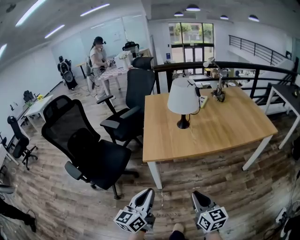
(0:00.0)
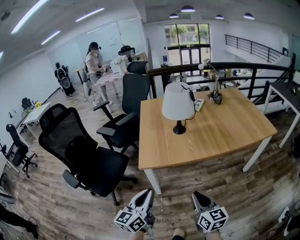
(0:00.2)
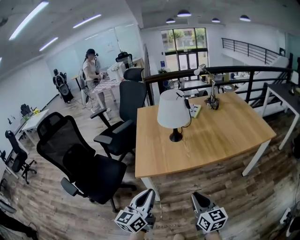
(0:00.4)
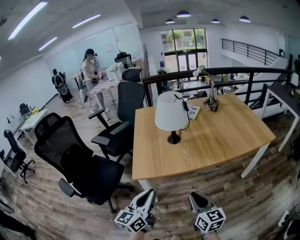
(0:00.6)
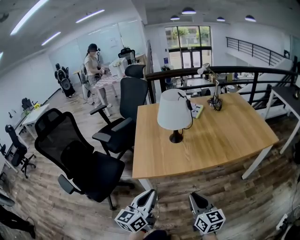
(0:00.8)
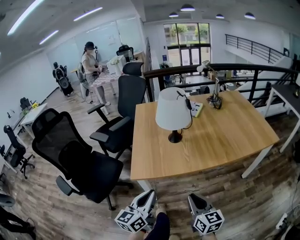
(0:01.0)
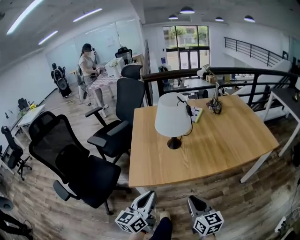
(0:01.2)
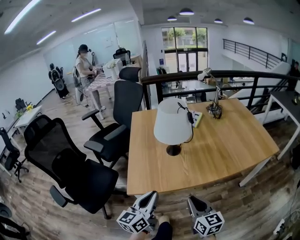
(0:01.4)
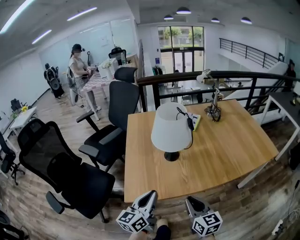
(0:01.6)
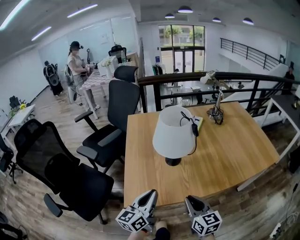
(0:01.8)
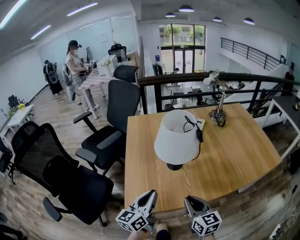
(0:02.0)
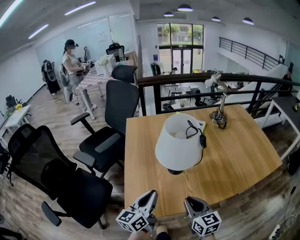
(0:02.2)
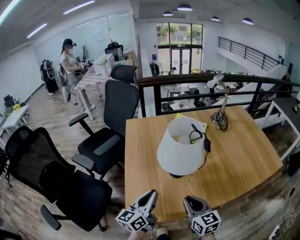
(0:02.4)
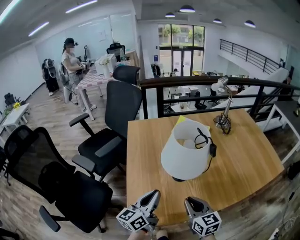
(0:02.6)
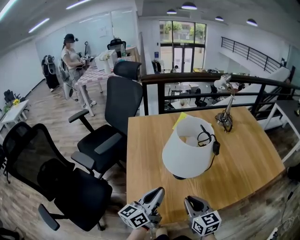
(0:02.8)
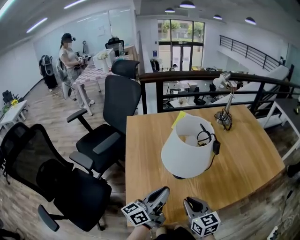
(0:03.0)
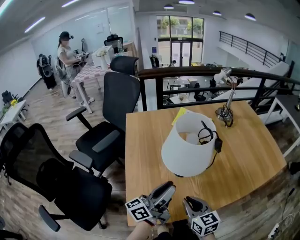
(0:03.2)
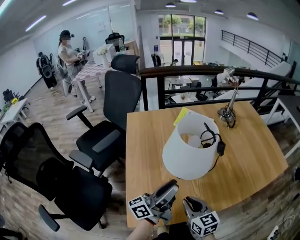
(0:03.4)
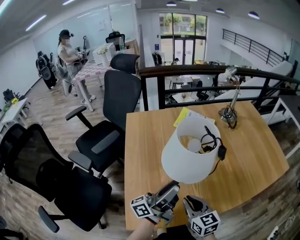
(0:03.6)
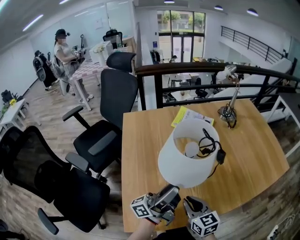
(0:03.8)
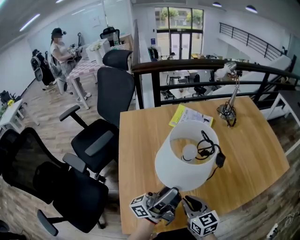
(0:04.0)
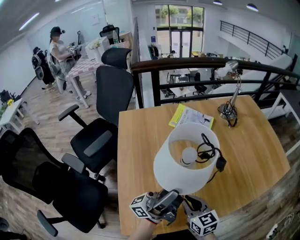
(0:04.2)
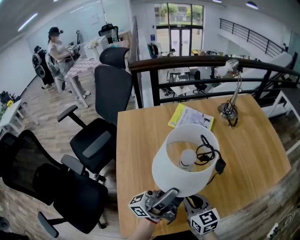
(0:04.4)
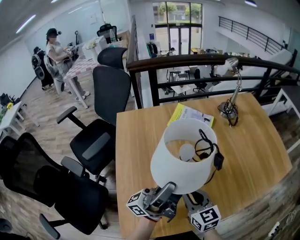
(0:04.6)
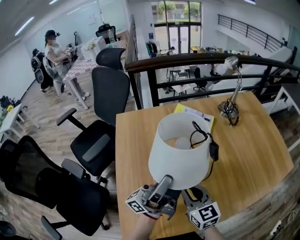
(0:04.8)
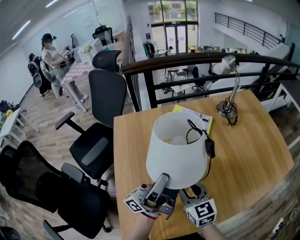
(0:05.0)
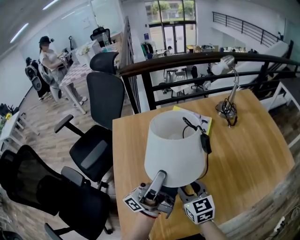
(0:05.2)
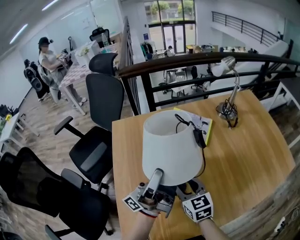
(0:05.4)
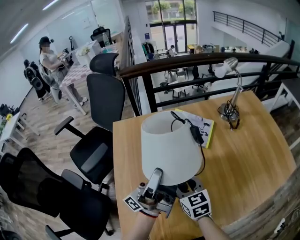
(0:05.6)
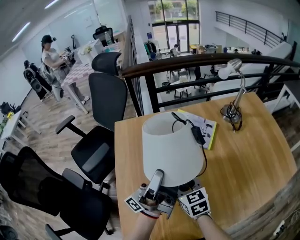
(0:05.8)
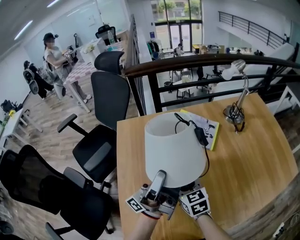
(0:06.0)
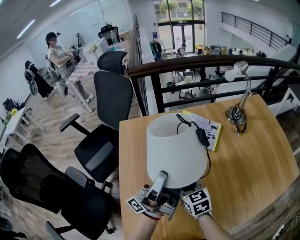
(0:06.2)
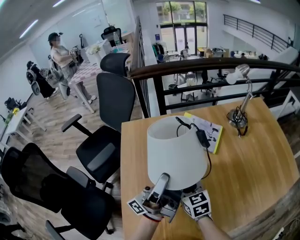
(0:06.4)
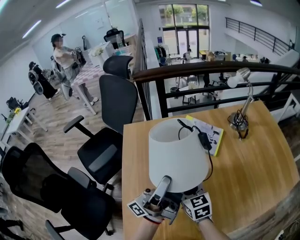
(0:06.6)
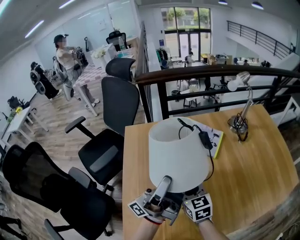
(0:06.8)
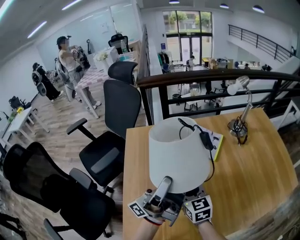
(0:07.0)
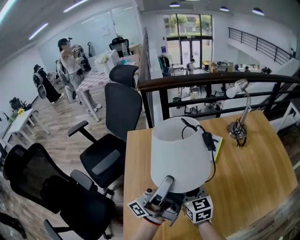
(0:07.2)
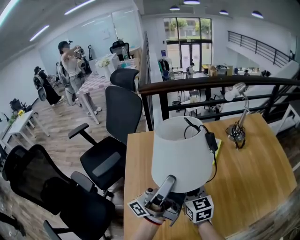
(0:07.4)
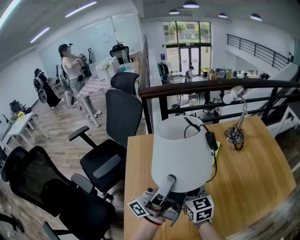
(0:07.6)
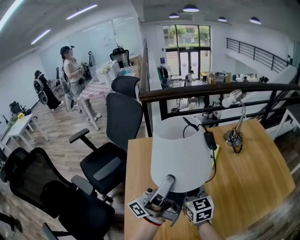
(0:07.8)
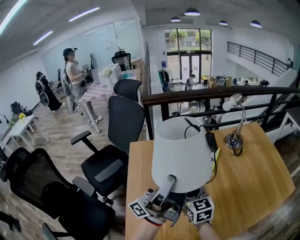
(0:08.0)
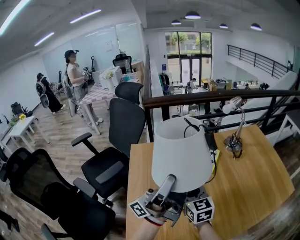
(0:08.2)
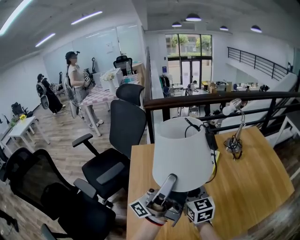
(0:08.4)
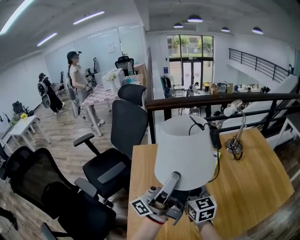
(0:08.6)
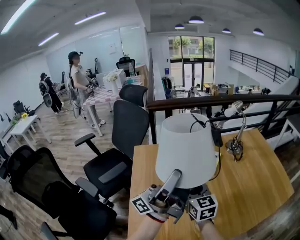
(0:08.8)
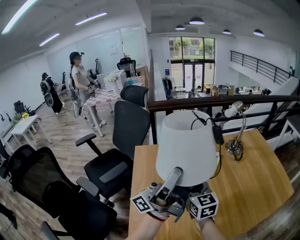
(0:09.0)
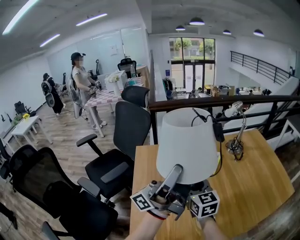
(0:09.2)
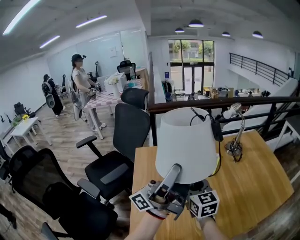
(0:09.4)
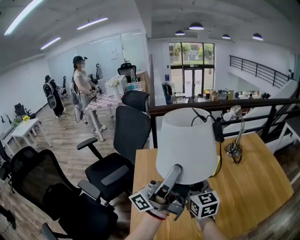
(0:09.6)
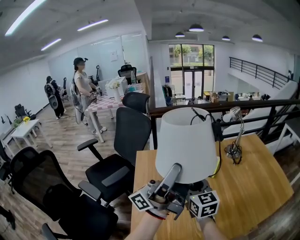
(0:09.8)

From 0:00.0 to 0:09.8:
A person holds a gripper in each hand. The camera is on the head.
From 0:00.0 to 0:01.4: Both grippers move forward, roughly 20 cm.
From 0:01.4 to 0:02.8: The grippers both shift forward by about 20 cm.
From 0:02.8 to 0:04.2: The right gripper heads forward, covering some 5 cm; the left gripper is displaced upward, forward and to the right by roughly 10 cm, tilts its fingers roughly 40 degrees upward, and opens up.
From 0:04.2 to 0:05.6: The two grippers go roughly 15 cm forward. The left gripper closes; the right gripper opens.
From 0:05.6 to 0:07.0: There are only small adjustments of the grippers.
From 0:07.0 to 0:08.4: Both grippers travel together upward, roughly 10 cm.
From 0:08.4 to 0:09.8: Both grippers travel together upward, about 5 cm.

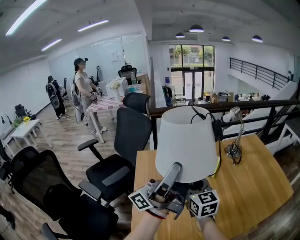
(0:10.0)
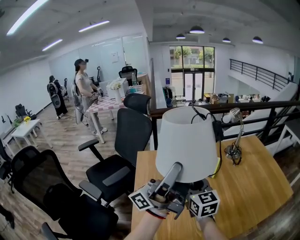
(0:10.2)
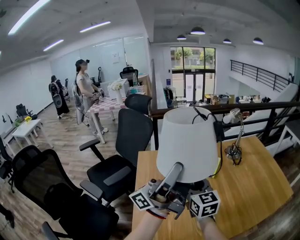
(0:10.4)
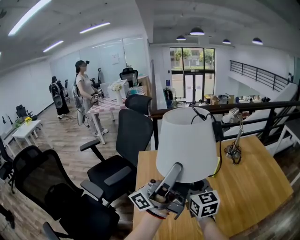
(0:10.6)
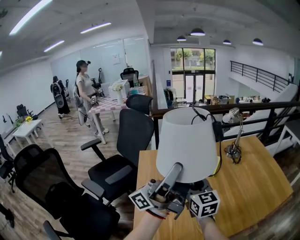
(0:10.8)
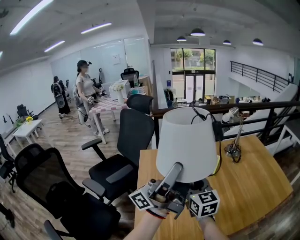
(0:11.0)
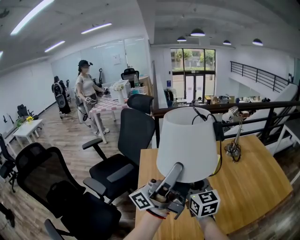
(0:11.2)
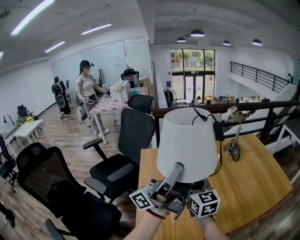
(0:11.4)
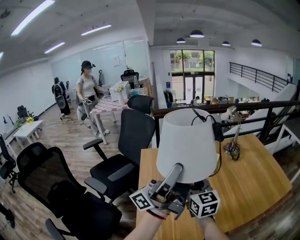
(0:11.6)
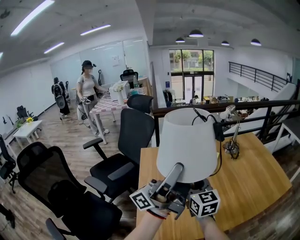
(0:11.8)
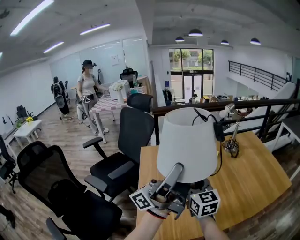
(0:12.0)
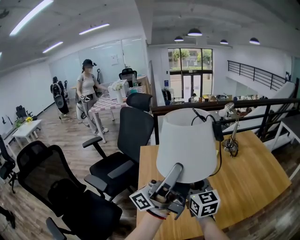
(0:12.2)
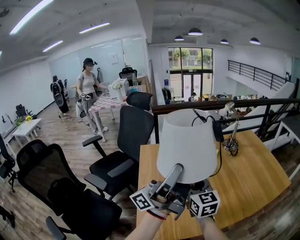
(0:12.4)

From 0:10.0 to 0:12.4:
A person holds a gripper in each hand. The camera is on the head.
From 0:10.0 to 0:11.2: Both grippers travel together backward, approximately 5 cm.
From 0:11.2 to 0:12.4: The grippers make only small movements.

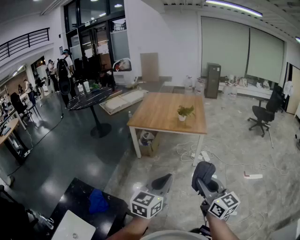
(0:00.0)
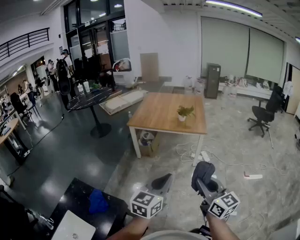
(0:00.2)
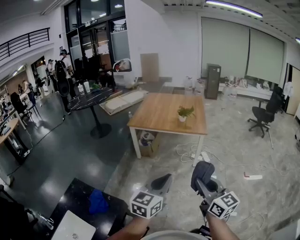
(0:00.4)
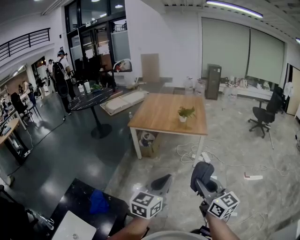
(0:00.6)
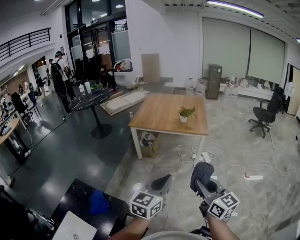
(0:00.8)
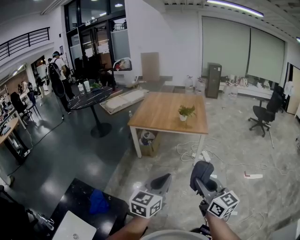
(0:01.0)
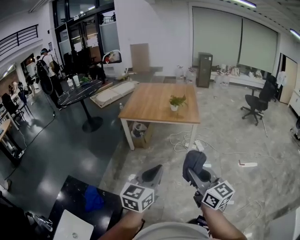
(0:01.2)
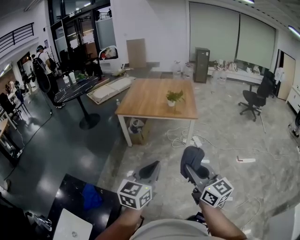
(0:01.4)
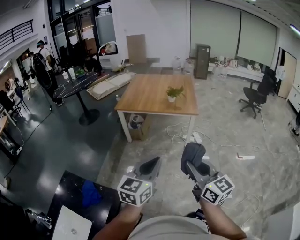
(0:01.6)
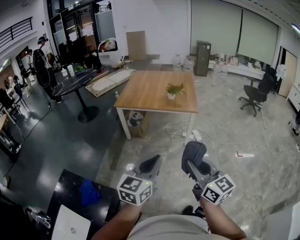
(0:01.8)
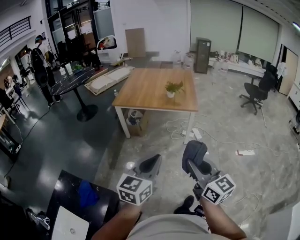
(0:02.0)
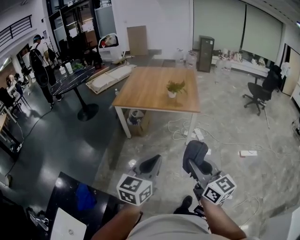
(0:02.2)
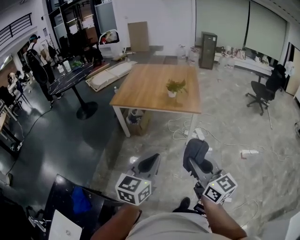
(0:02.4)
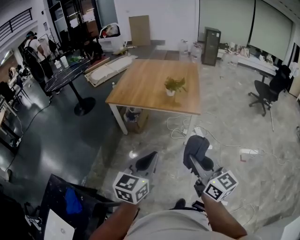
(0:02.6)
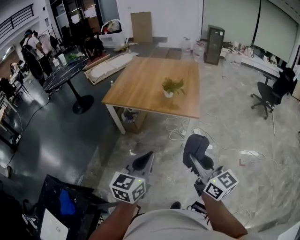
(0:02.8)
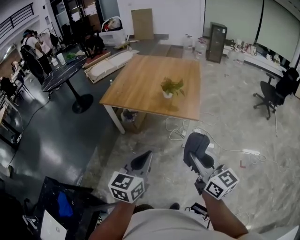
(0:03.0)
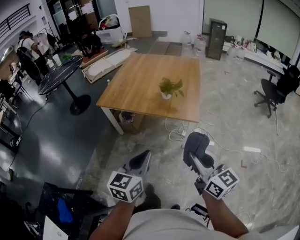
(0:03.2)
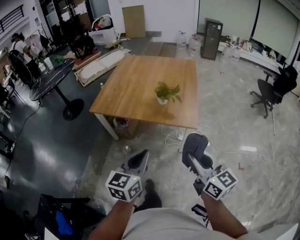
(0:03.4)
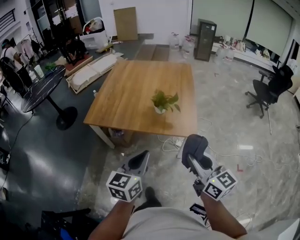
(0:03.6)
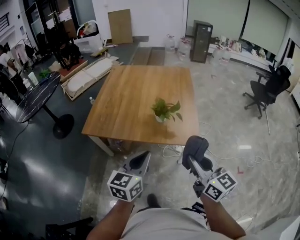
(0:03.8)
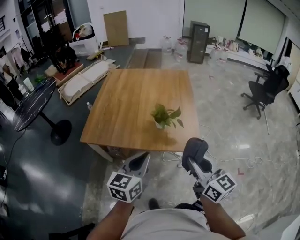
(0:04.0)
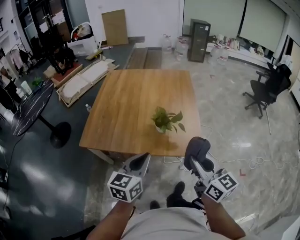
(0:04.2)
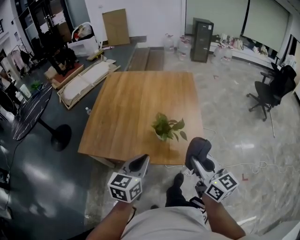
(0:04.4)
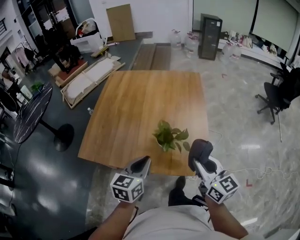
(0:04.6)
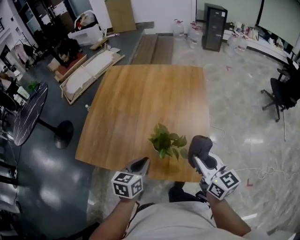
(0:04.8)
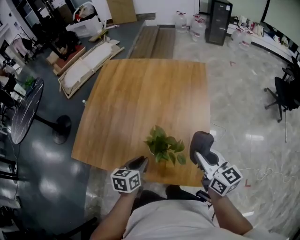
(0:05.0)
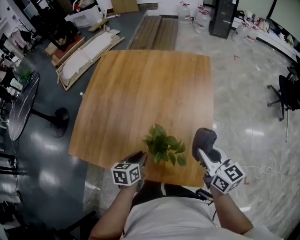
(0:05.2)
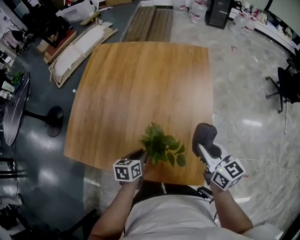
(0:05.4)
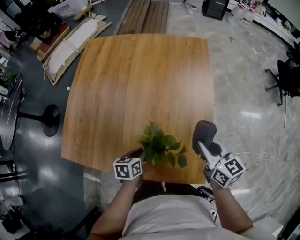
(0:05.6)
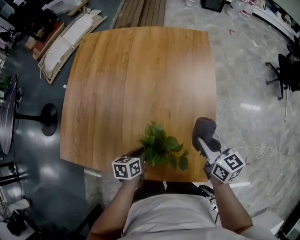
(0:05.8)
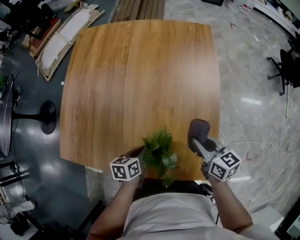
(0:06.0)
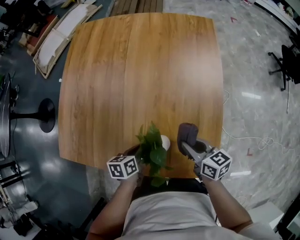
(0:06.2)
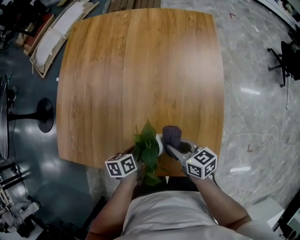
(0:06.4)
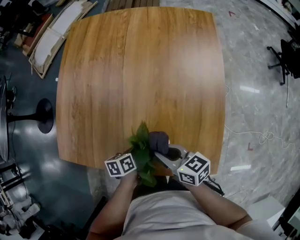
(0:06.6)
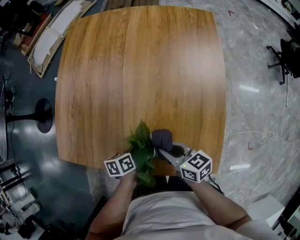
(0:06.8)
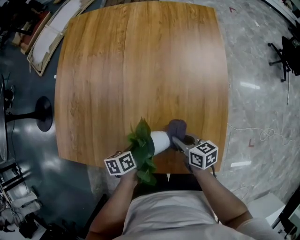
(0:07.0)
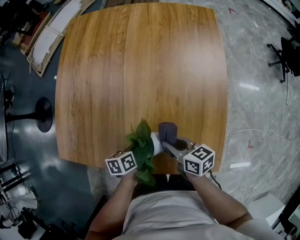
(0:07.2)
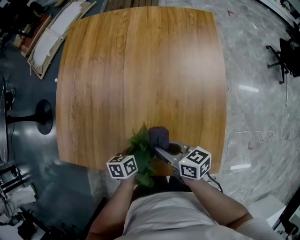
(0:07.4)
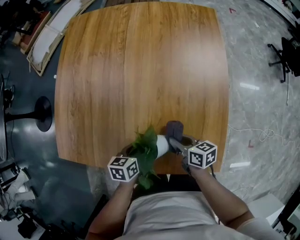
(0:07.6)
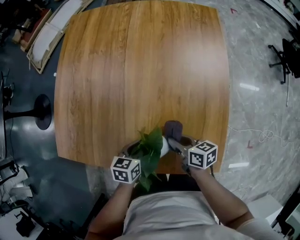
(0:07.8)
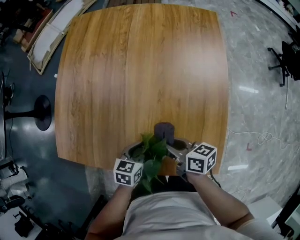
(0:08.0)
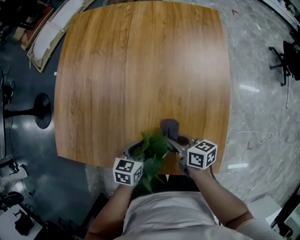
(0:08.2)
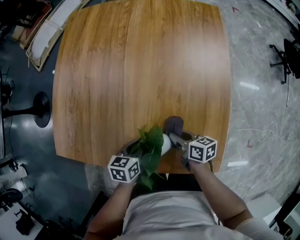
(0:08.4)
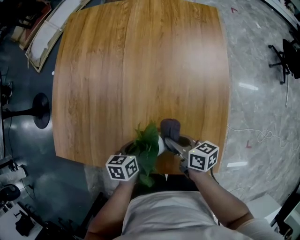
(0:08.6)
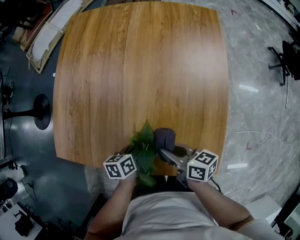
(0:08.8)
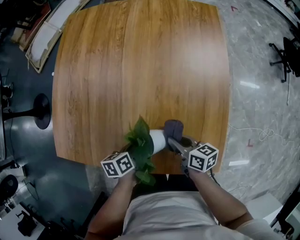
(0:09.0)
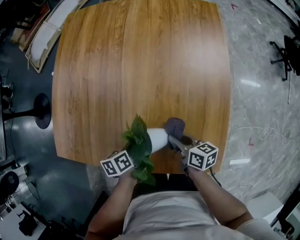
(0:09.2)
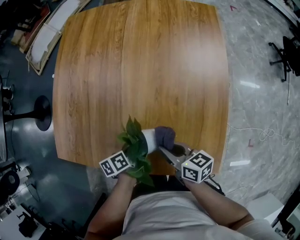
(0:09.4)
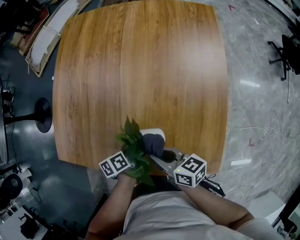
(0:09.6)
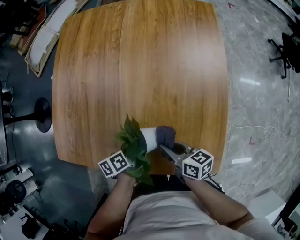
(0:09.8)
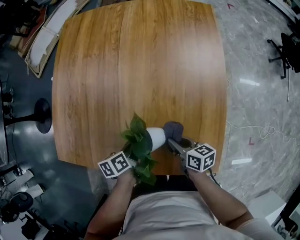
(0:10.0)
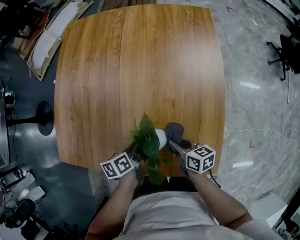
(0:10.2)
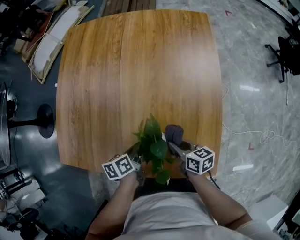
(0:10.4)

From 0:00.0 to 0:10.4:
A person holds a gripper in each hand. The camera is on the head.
From 0:00.0 to 0:01.4: The grippers make only small movements.
From 0:01.4 to 0:03.0: The two grippers travel together, forward and to the right, about 40 cm.
From 0:03.0 to 0:04.4: Both grippers are carried forward, some 50 cm.
From 0:04.4 to 0:06.0: The right gripper heads forward and downward, covering approximately 50 cm, and rotates approximately 30 degrees. The left gripper moves downward and forward, approximately 50 cm, and tips its fingers downward by approximately 30 degrees.
From 0:06.0 to 0:07.4: The right gripper moves left and right over approximately 20 cm, changing direction 2 times, and swivels approximately 20 degrees. The left gripper shifts by approximately 5 cm.
From 0:07.4 to 0:09.0: The right gripper moves up and down over some 10 cm, changing direction 4 times.
From 0:09.0 to 0:10.4: The right gripper reaches about 10 cm to the left, then returns.

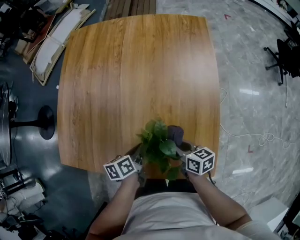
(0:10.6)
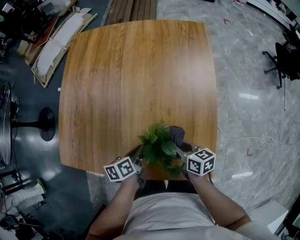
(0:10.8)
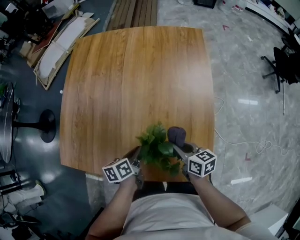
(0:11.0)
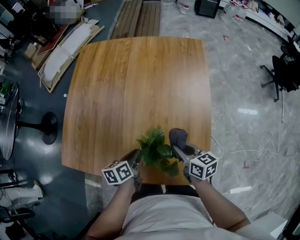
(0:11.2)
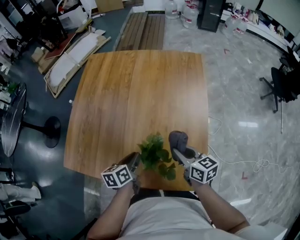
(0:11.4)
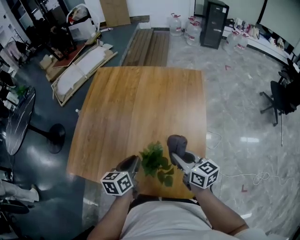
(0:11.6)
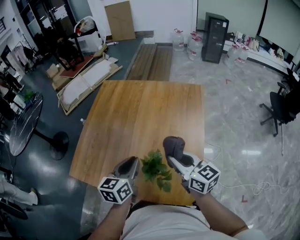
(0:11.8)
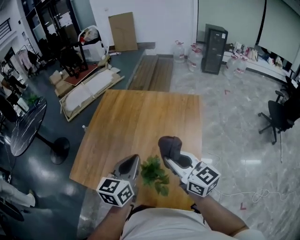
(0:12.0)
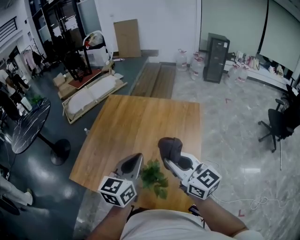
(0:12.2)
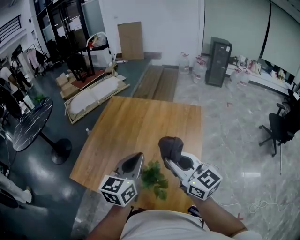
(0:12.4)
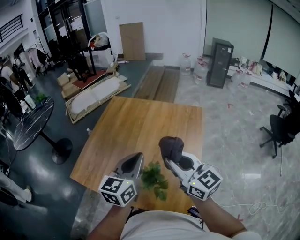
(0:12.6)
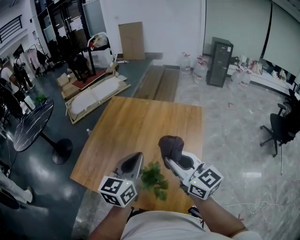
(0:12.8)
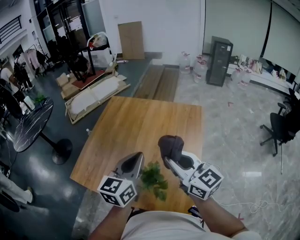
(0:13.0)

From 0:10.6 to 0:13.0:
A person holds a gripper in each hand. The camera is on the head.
From 0:10.6 to 0:11.8: The two grippers go some 30 cm upward. The right gripper turns by approximately 40 degrees; the left gripper rotates roughly 40 degrees.
From 0:11.8 to 0:13.0: Both grippers move upward, roughly 15 cm.
